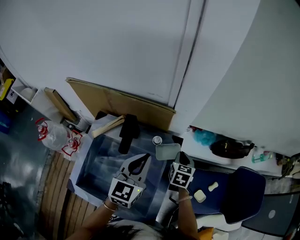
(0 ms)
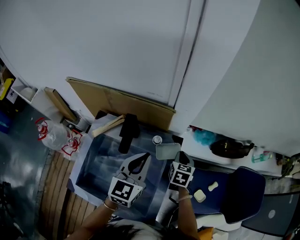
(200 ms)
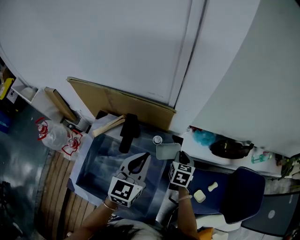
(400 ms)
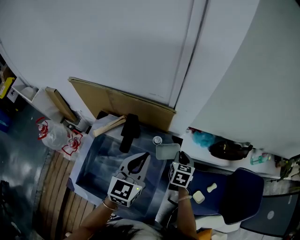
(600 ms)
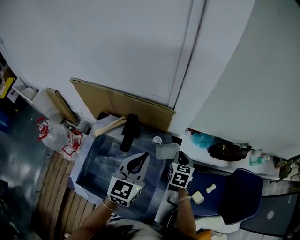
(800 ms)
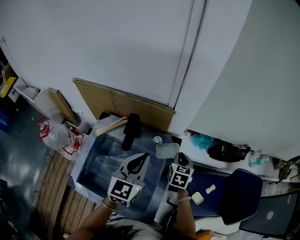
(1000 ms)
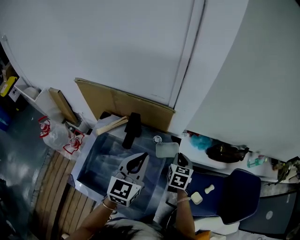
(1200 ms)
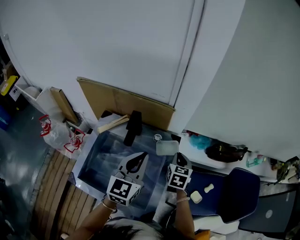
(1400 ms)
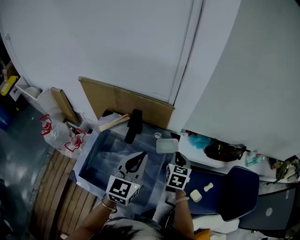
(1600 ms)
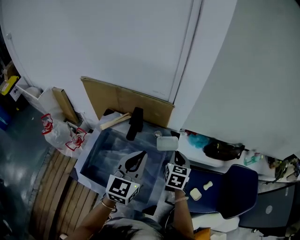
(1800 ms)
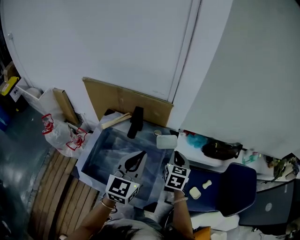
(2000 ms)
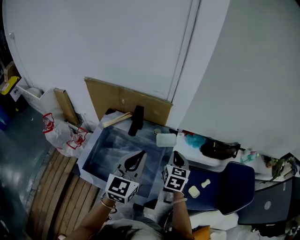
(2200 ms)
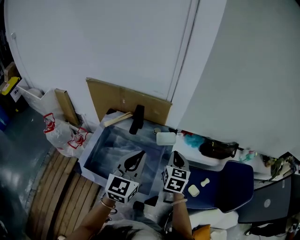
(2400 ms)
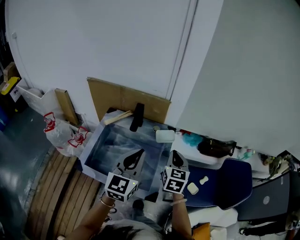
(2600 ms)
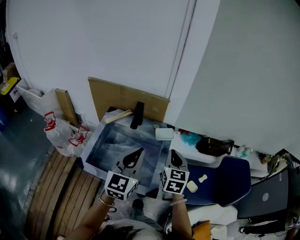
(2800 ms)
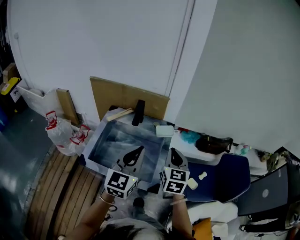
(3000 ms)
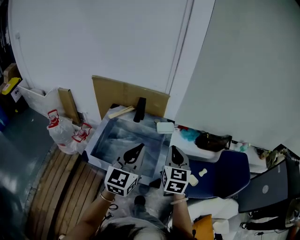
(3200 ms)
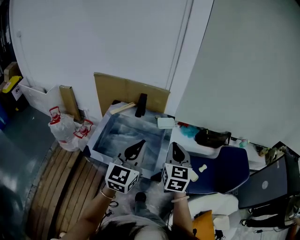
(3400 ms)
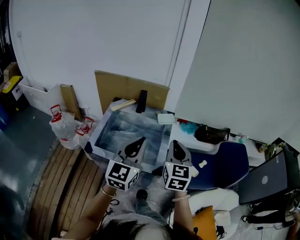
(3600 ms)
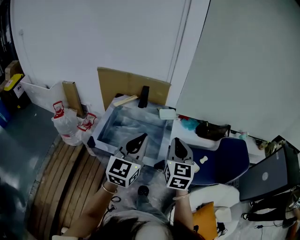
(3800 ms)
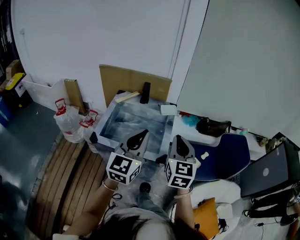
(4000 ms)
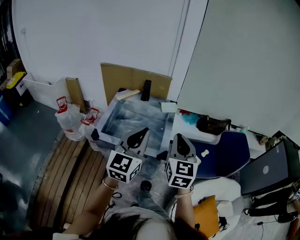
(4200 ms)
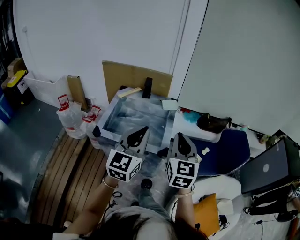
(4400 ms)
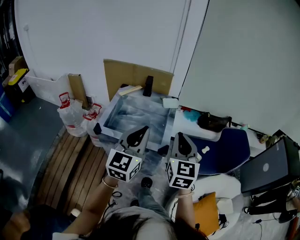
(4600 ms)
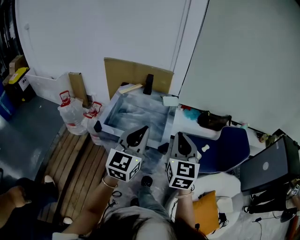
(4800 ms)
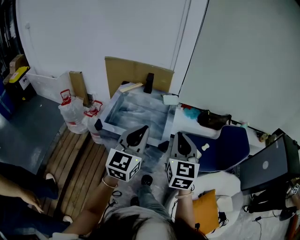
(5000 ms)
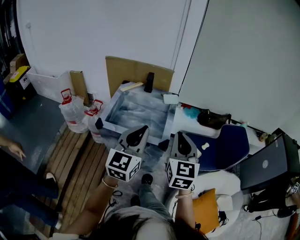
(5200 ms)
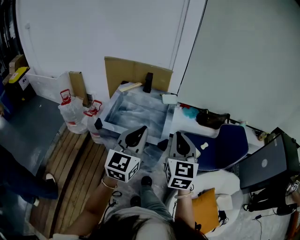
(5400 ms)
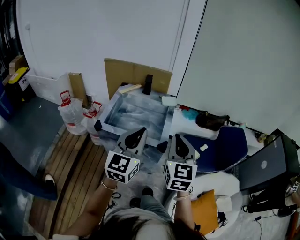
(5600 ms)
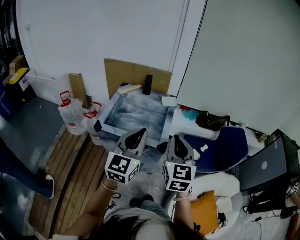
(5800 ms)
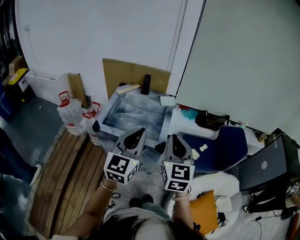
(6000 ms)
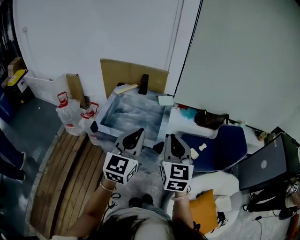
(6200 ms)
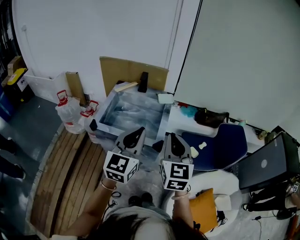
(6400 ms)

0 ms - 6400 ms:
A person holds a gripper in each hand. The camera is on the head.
0 ms - 1600 ms: The right gripper goes some 10 cm upward and backward, while the left gripper travels backward by roughly 5 cm.
1600 ms - 3200 ms: The left gripper travels backward by roughly 20 cm. Meanwhile the right gripper shifts some 25 cm backward and upward, and swivels some 20 degrees.
3200 ms - 4800 ms: The two grippers go approximately 20 cm backward.
4800 ms - 6400 ms: There are only small adjustments of the grippers.

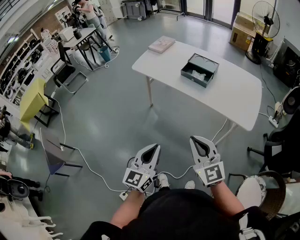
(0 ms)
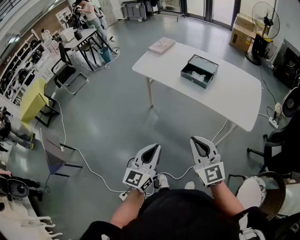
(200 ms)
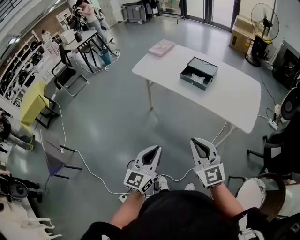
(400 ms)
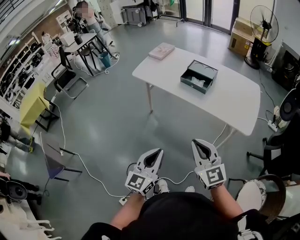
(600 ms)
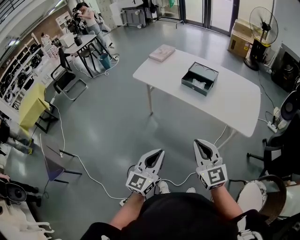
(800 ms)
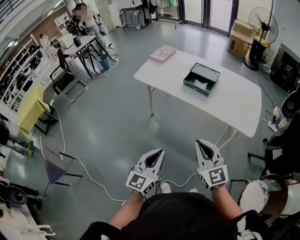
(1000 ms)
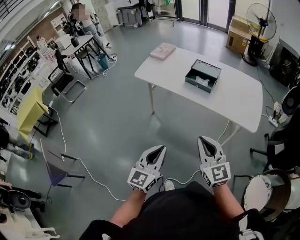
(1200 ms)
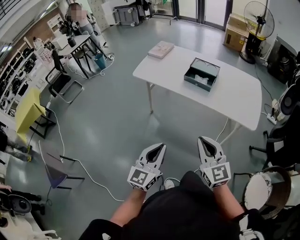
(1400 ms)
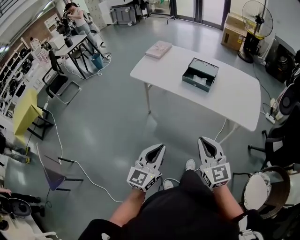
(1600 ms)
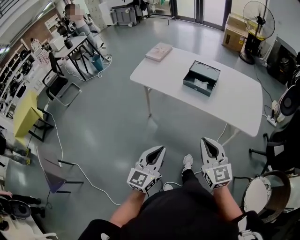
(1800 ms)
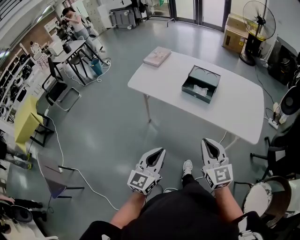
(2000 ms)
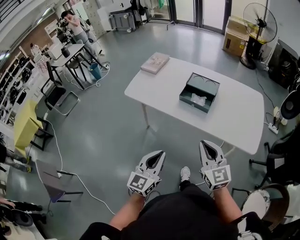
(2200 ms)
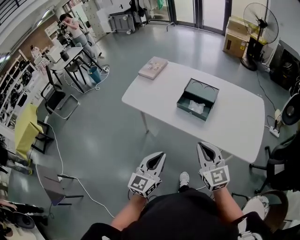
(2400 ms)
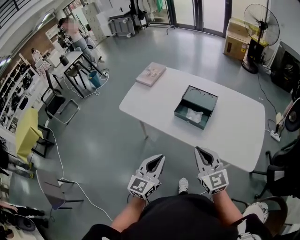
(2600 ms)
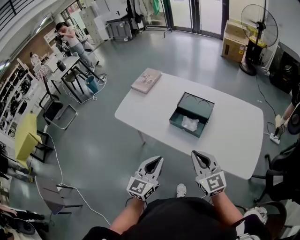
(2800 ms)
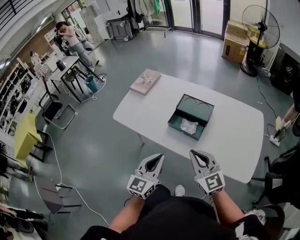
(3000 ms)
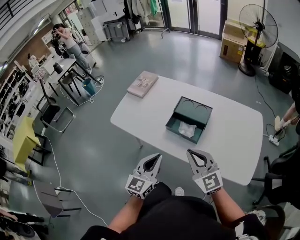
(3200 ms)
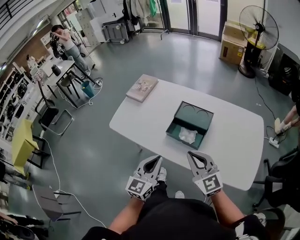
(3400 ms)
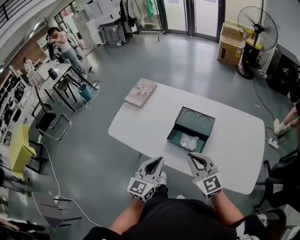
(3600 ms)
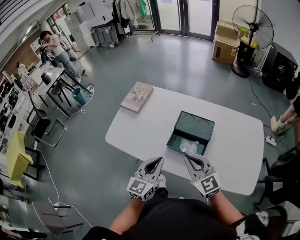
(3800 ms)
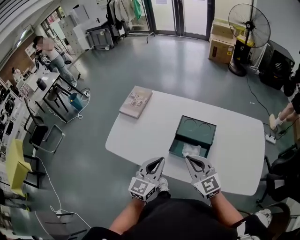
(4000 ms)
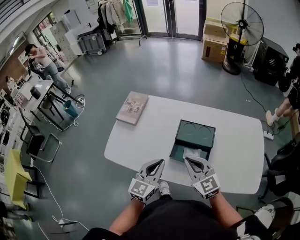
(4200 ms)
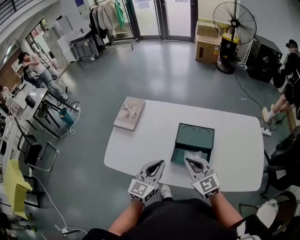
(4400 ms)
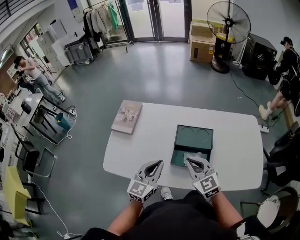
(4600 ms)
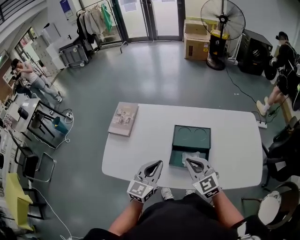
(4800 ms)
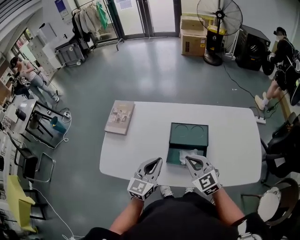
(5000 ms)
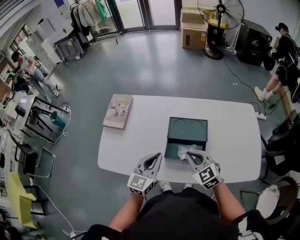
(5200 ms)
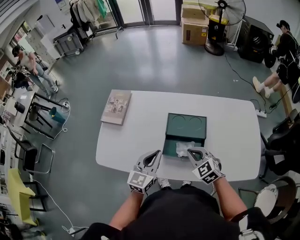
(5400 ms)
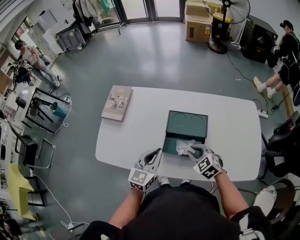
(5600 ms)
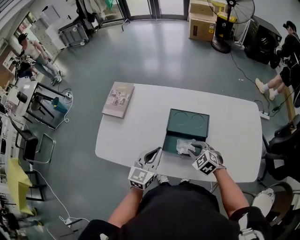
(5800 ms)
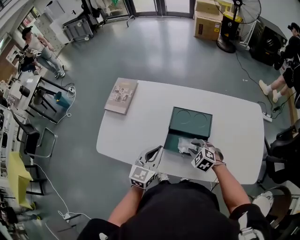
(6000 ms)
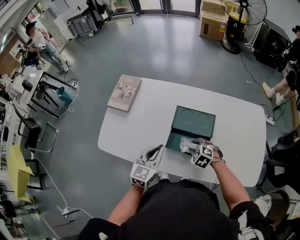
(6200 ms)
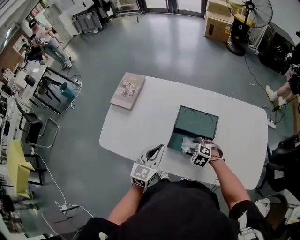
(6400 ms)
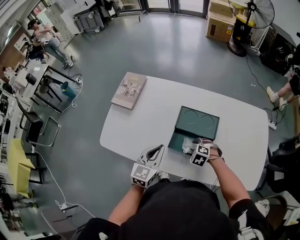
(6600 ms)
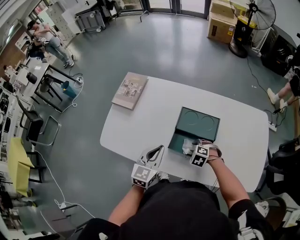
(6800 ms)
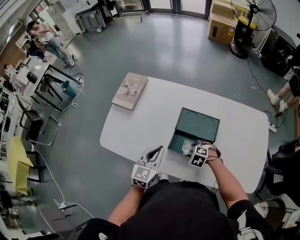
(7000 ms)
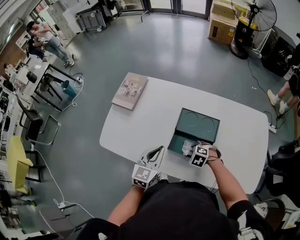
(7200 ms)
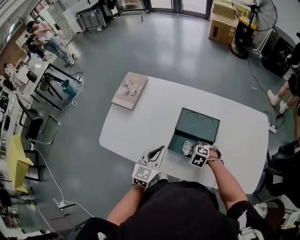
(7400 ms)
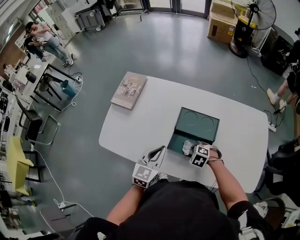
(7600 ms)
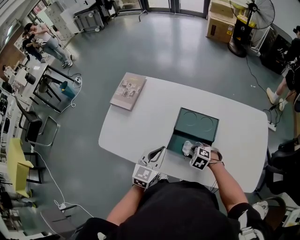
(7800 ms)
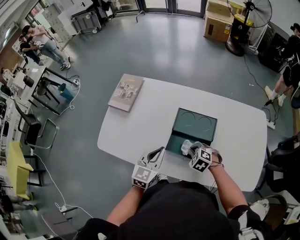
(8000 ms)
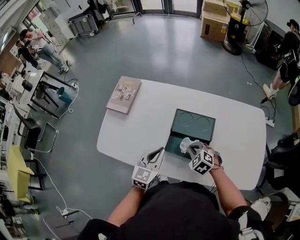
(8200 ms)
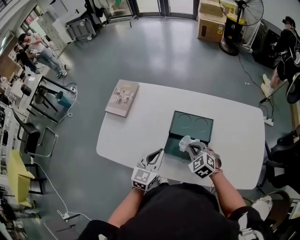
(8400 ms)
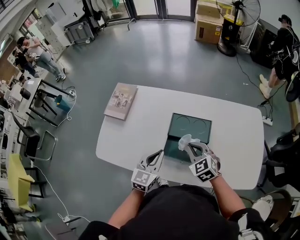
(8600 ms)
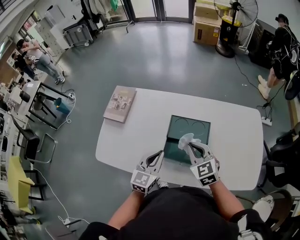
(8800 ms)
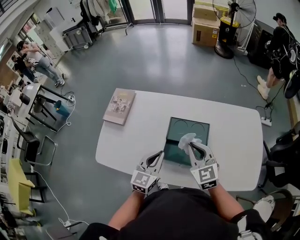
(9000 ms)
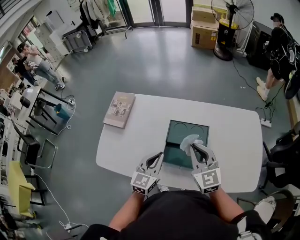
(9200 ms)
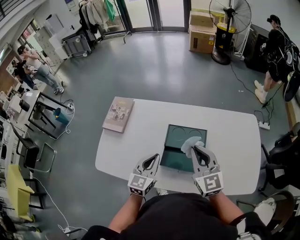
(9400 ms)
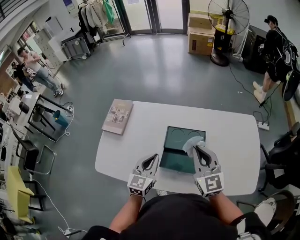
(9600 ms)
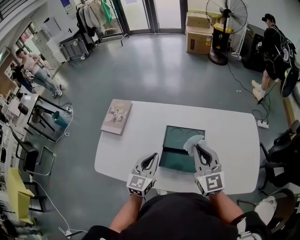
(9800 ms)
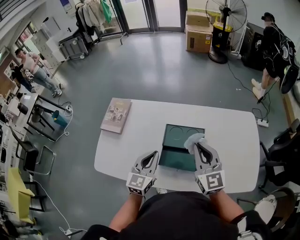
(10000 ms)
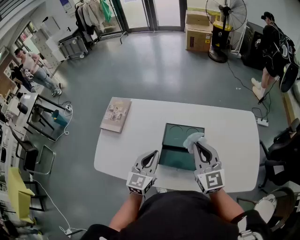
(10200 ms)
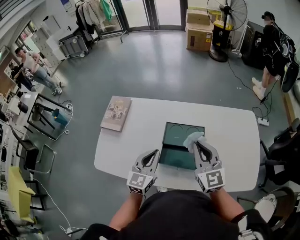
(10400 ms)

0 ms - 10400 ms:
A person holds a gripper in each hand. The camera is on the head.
0 ms - 1400 ms: The left gripper is displaced to the left by about 5 cm.
1400 ms - 3000 ms: The grippers both shift forward by approximately 35 cm.
3000 ms - 4400 ms: The right gripper travels forward and to the left by approximately 20 cm. Meanwhile the left gripper shifts some 25 cm forward.
4400 ms - 6000 ms: The right gripper goes about 20 cm downward and to the right, angles its fingers downward, by some 40 degrees, and opens. Meanwhile the left gripper shifts approximately 5 cm downward.
6000 ms - 7400 ms: The right gripper is displaced downward by some 5 cm.
7400 ms - 9000 ms: The right gripper goes roughly 25 cm upward, and tilts its fingers roughly 50 degrees upward.
9000 ms - 10400 ms: The right gripper goes about 5 cm upward.

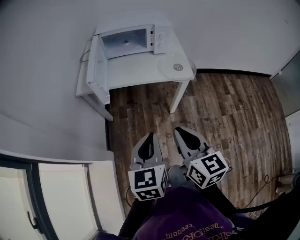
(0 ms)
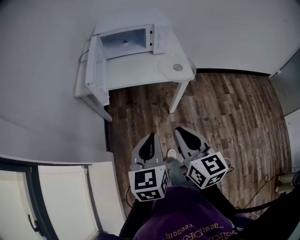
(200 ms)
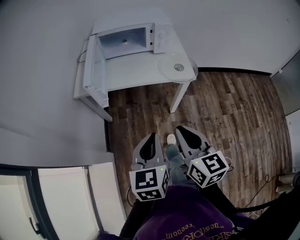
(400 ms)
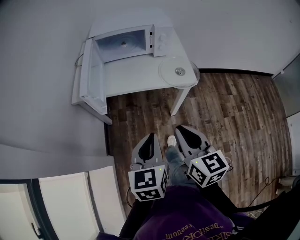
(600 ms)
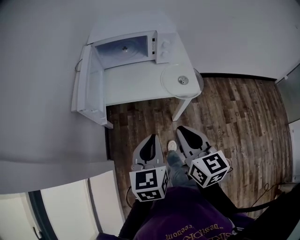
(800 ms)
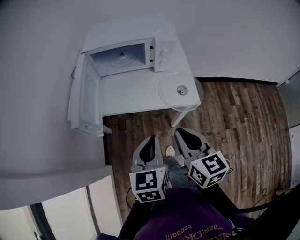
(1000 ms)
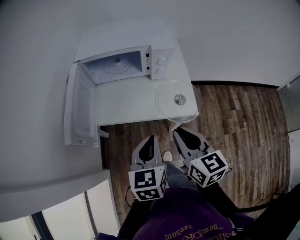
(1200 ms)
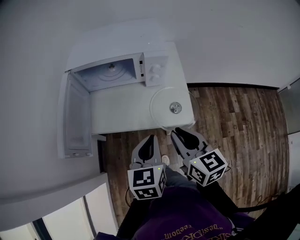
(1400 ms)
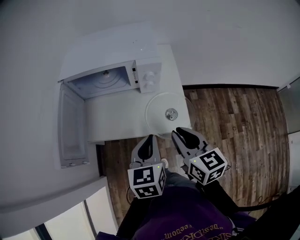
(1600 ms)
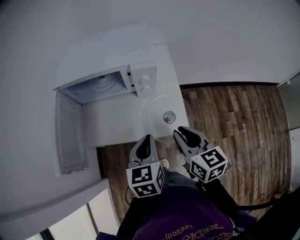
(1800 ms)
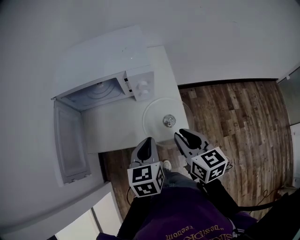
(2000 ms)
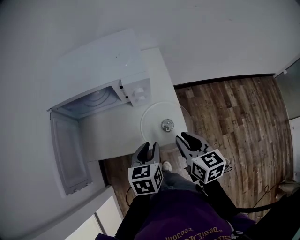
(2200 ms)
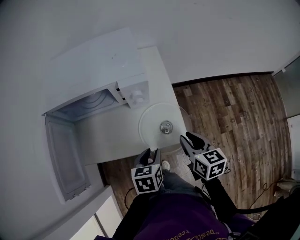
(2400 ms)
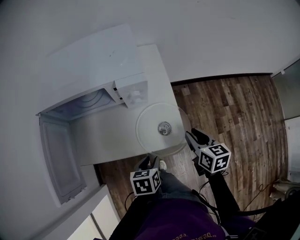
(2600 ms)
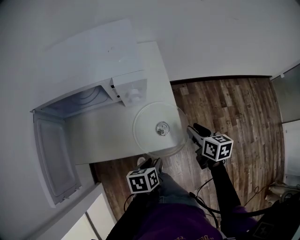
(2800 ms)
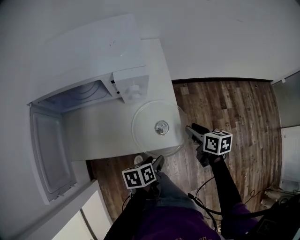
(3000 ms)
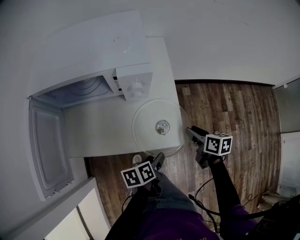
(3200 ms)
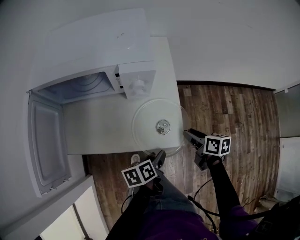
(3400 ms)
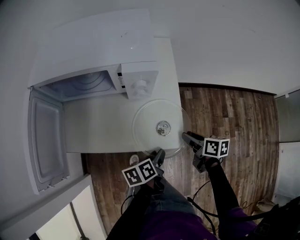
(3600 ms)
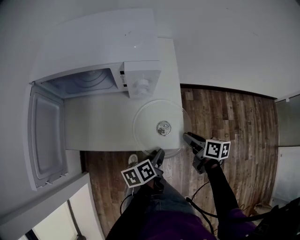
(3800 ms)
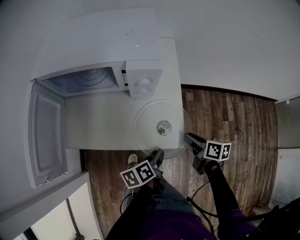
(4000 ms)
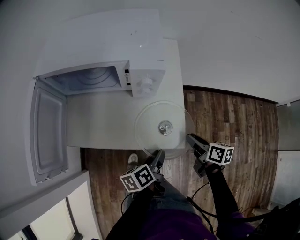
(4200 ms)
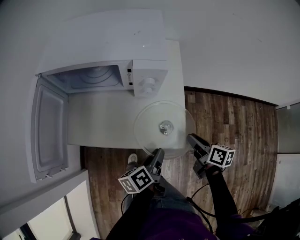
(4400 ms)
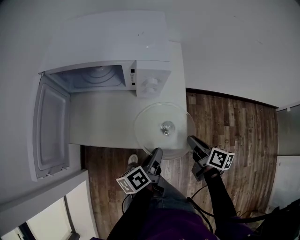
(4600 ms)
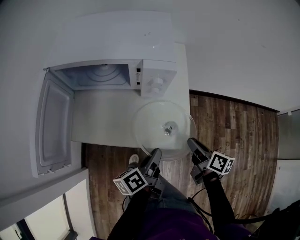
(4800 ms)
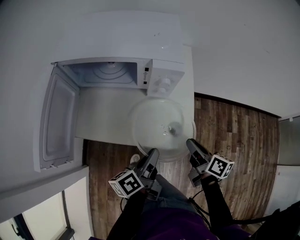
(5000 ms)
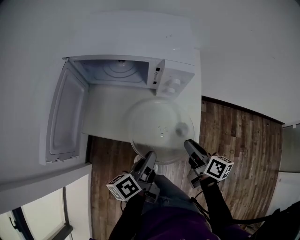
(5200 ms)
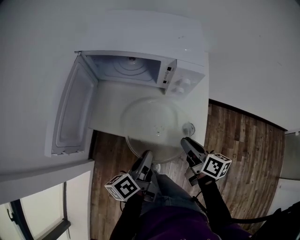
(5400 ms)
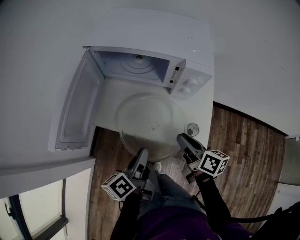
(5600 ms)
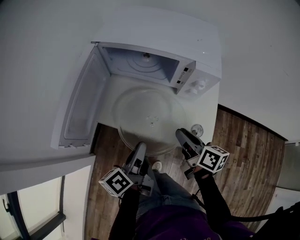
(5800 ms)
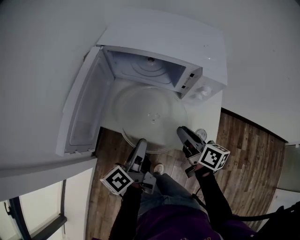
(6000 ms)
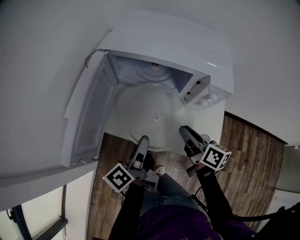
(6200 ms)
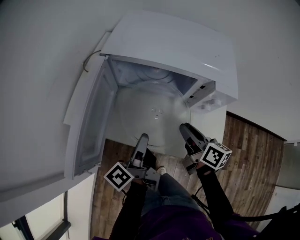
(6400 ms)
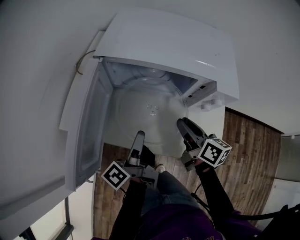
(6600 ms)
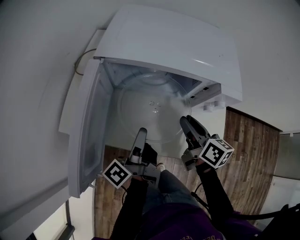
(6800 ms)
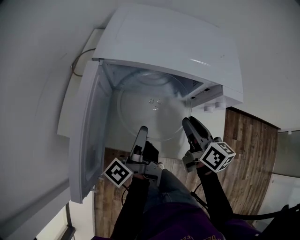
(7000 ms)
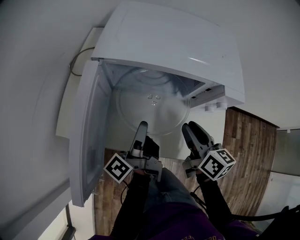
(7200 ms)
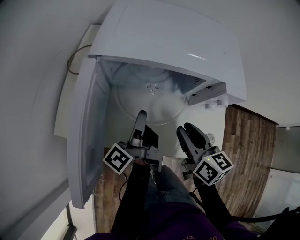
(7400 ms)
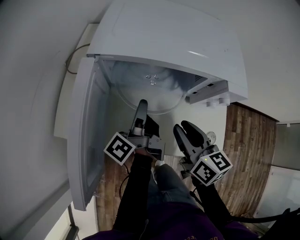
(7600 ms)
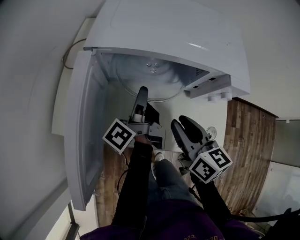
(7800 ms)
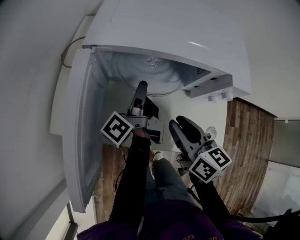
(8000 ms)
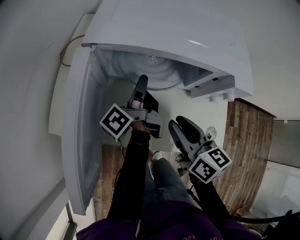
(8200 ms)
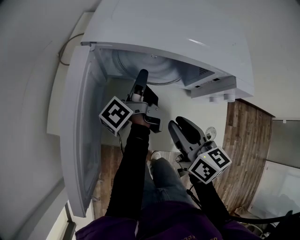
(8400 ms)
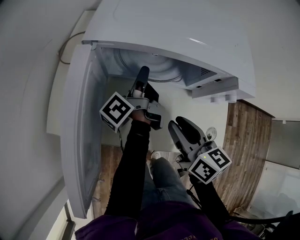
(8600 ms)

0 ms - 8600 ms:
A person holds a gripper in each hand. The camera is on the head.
0 ms - 1400 ms: The right gripper travels forward by approximately 30 cm. Meanwhile the left gripper travels forward and to the right by roughly 30 cm.
1400 ms - 2800 ms: The left gripper moves downward and to the right, some 20 cm, swivels roughly 40 degrees, and opens up. Meanwhile the right gripper is displaced to the right, downward and forward by about 25 cm, rotates some 30 degrees, and opens.
2800 ms - 4400 ms: The left gripper changes its angle by roughly 40 degrees. The right gripper swivels approximately 20 degrees.
4400 ms - 5800 ms: Both grippers move to the left, roughly 20 cm. The left gripper swivels approximately 30 degrees.
5800 ms - 7200 ms: The right gripper is displaced forward by about 10 cm. The left gripper travels forward by approximately 15 cm, and changes its angle by about 30 degrees.
7200 ms - 8600 ms: The left gripper goes some 15 cm forward. The right gripper travels to the left by some 5 cm.
